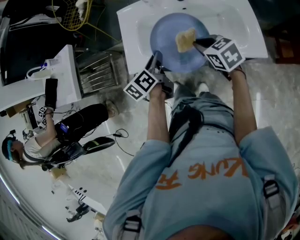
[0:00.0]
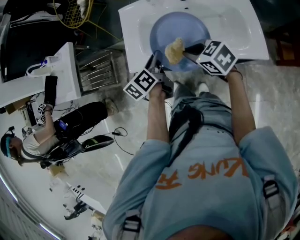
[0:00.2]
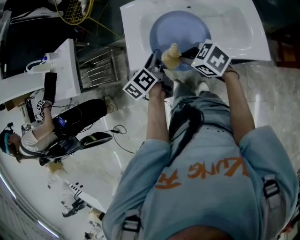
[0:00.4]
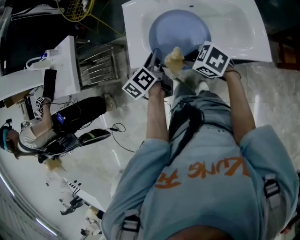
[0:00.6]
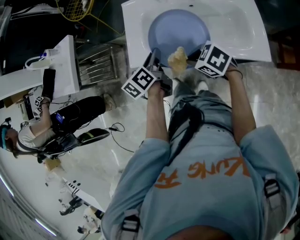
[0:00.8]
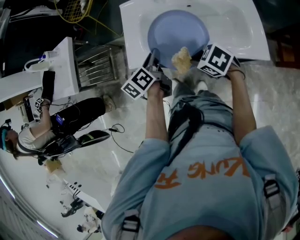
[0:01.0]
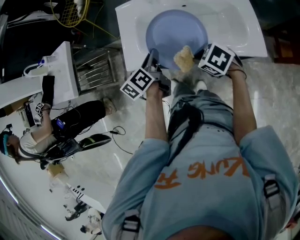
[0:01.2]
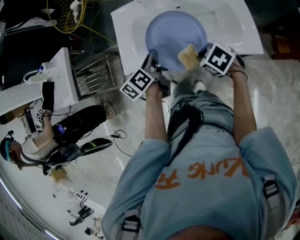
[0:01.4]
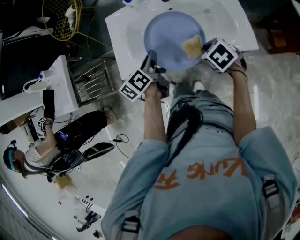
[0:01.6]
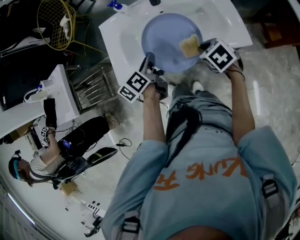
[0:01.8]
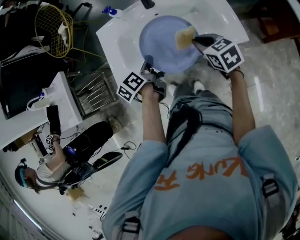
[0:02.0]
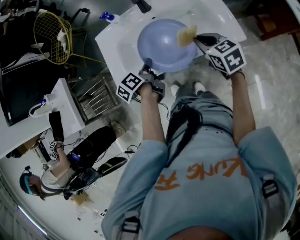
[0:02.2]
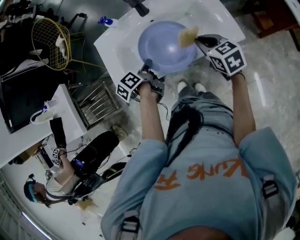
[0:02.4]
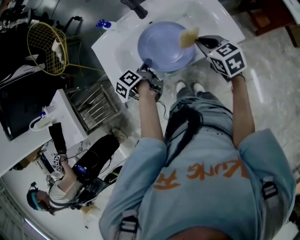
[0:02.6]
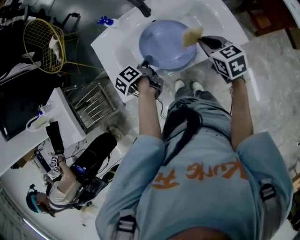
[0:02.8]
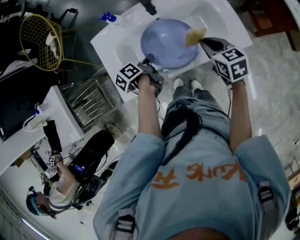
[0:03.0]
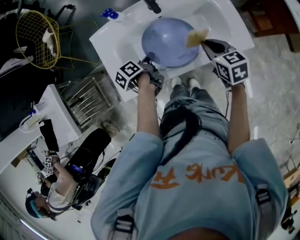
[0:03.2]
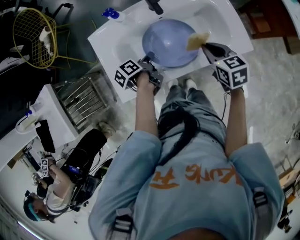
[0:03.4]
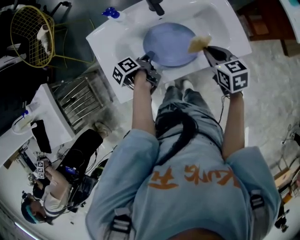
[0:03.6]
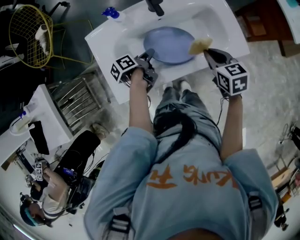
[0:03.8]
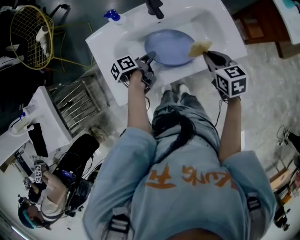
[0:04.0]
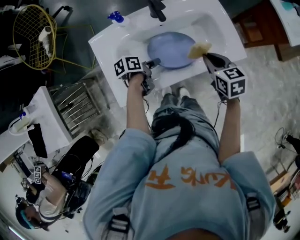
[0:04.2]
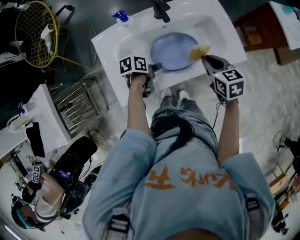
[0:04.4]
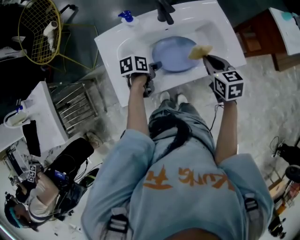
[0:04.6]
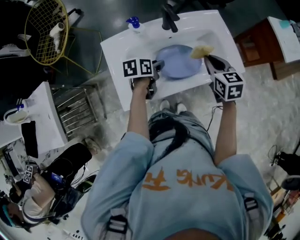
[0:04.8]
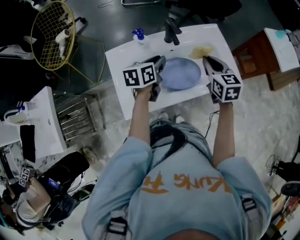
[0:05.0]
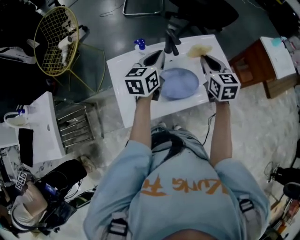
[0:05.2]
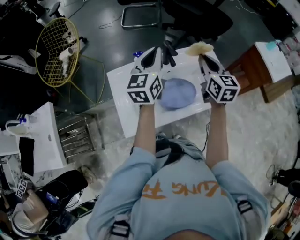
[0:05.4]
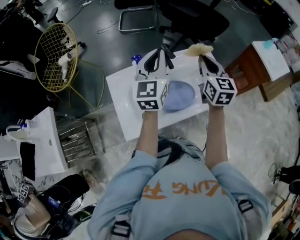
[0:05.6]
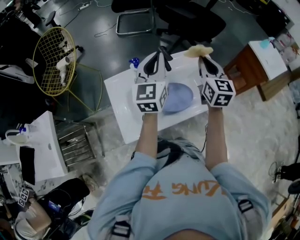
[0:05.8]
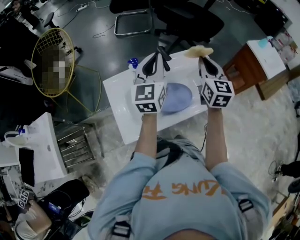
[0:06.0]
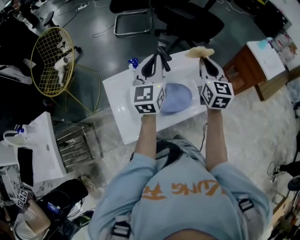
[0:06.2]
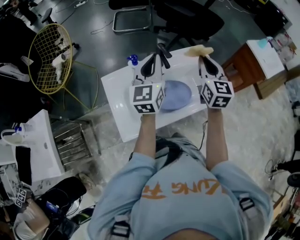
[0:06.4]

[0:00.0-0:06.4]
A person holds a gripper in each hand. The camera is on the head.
0:00.0 to 0:01.6: The right gripper is displaced backward and to the right by about 10 cm, and rotates some 20 degrees.
0:01.6 to 0:03.2: The right gripper goes about 5 cm forward, and swivels approximately 40 degrees. Meanwhile the left gripper is displaced downward and forward by approximately 10 cm, and rotates approximately 30 degrees.
0:03.2 to 0:04.8: Both grippers move upward, approximately 5 cm. The left gripper rotates about 40 degrees.
0:04.8 to 0:06.4: The right gripper travels upward and forward by approximately 15 cm, and turns by approximately 30 degrees, while the left gripper is displaced upward by some 25 cm, tips its fingers upward by some 50 degrees, and closes up.

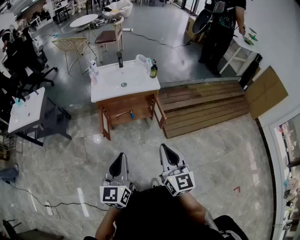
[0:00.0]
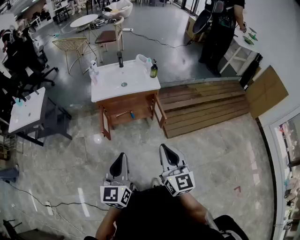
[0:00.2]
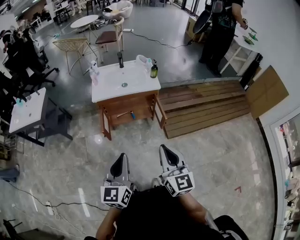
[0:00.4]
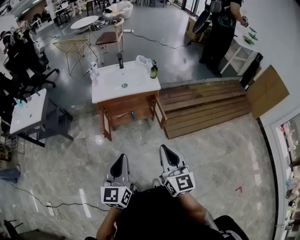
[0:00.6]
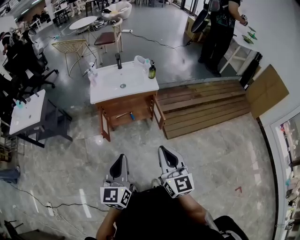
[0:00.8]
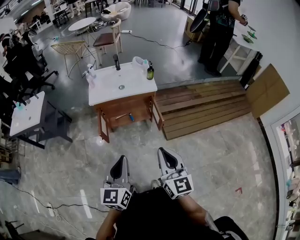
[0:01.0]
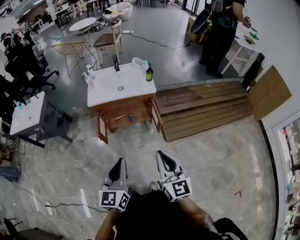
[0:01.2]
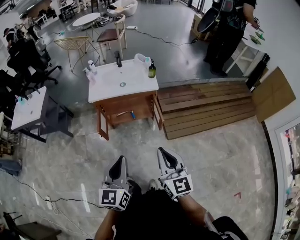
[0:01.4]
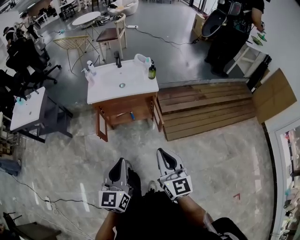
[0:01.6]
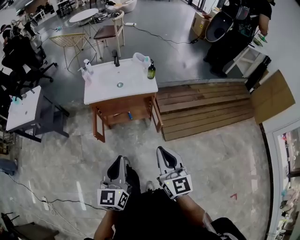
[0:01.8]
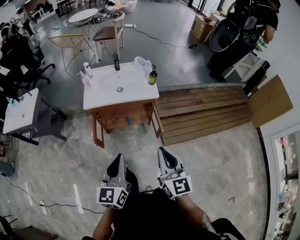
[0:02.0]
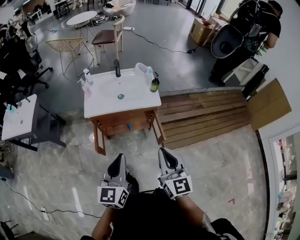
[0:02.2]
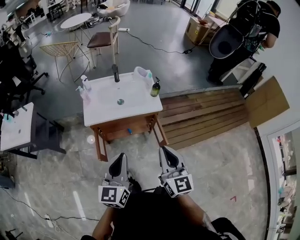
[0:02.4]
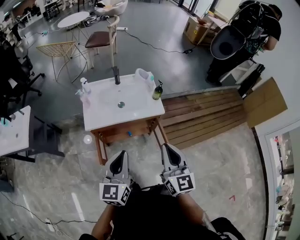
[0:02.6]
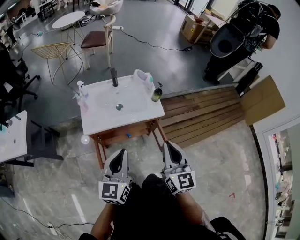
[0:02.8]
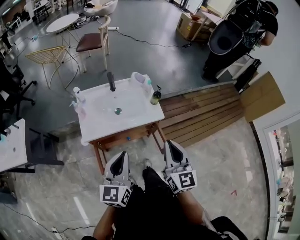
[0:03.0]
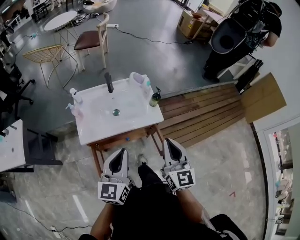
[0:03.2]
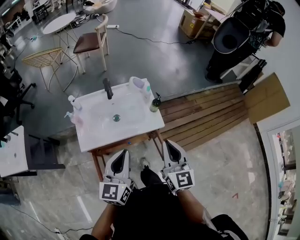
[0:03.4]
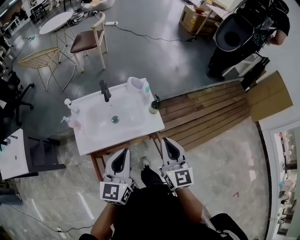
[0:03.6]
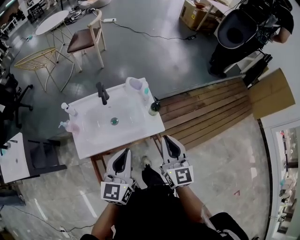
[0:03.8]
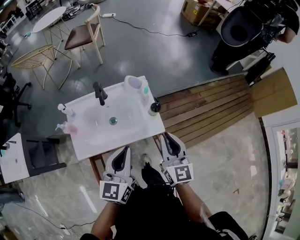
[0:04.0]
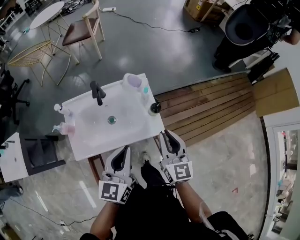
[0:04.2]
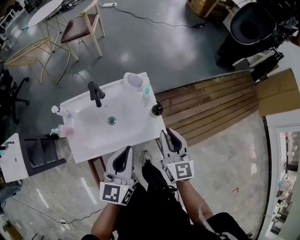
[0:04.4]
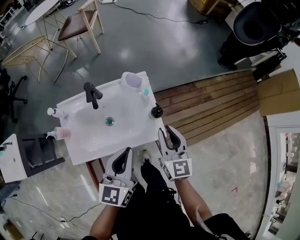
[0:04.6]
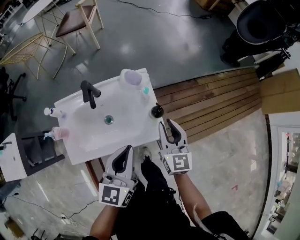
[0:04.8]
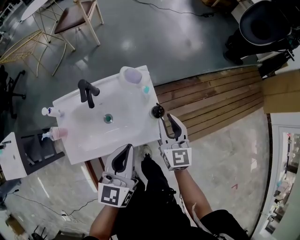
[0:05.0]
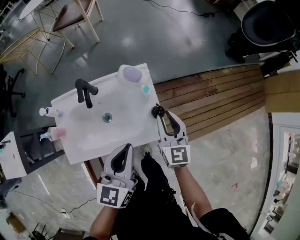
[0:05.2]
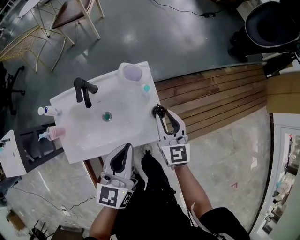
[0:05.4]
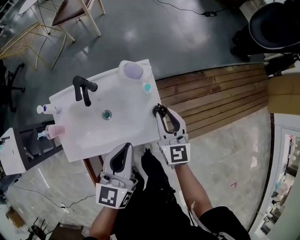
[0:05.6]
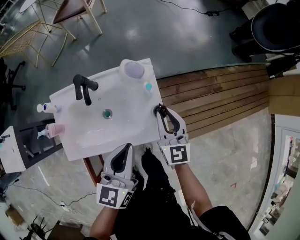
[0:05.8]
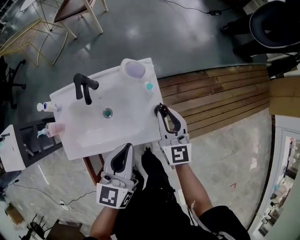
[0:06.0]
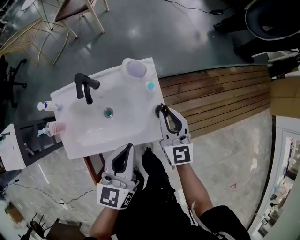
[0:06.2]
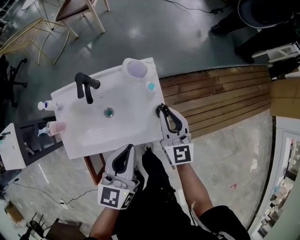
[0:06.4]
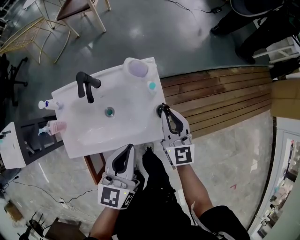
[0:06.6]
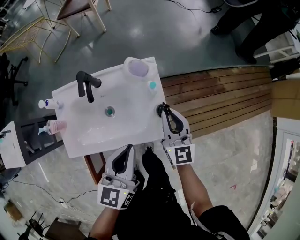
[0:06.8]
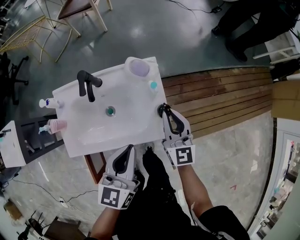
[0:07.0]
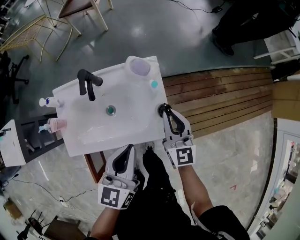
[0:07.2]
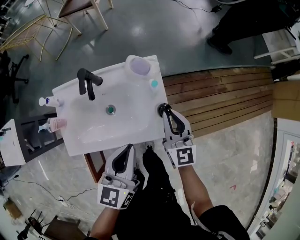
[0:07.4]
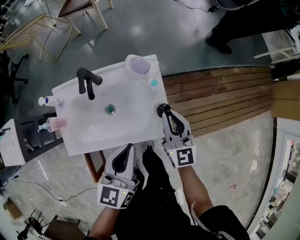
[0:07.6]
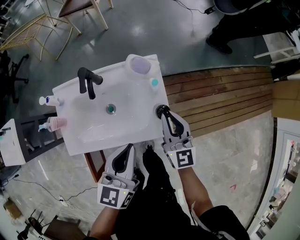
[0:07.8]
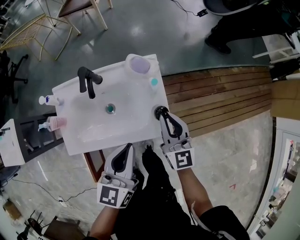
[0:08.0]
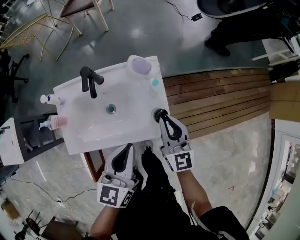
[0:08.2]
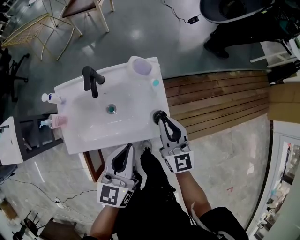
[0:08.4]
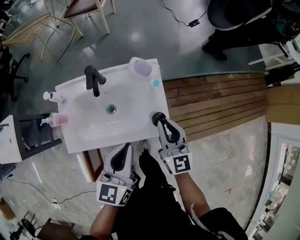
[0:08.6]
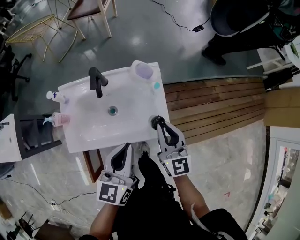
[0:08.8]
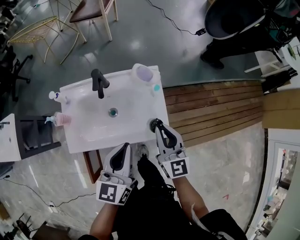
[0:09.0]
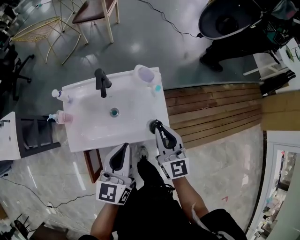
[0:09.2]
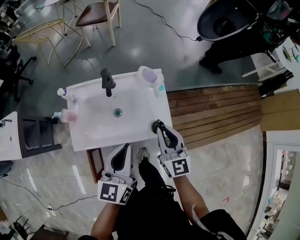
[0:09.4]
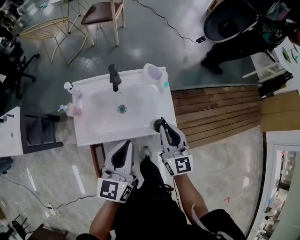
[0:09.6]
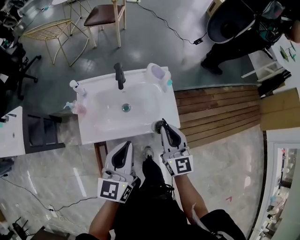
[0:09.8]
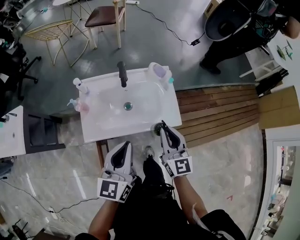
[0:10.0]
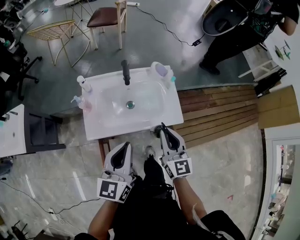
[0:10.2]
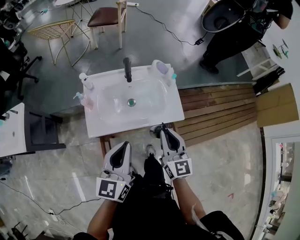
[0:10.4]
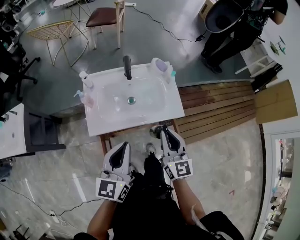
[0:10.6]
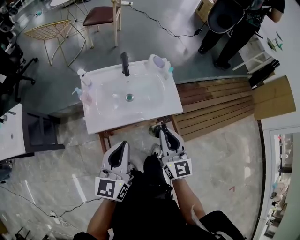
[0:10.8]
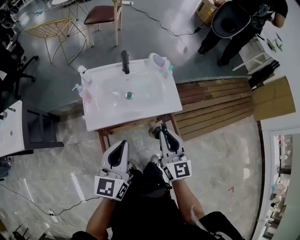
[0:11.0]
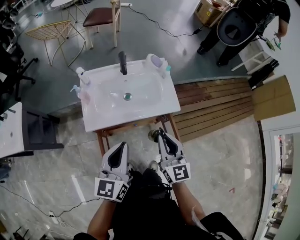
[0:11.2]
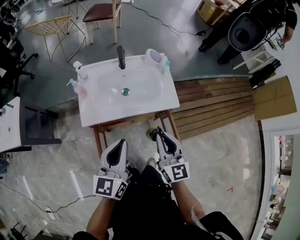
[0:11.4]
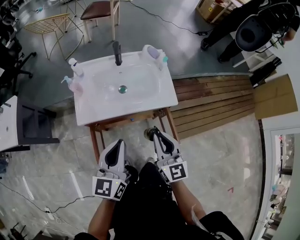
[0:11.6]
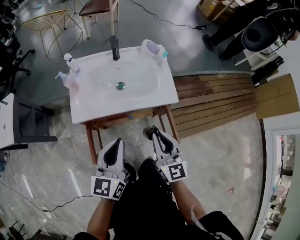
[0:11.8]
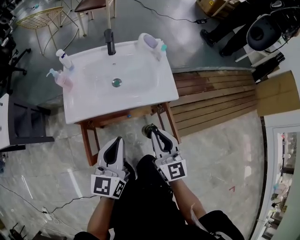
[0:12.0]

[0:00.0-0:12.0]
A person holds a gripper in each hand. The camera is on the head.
0:00.0 to 0:01.6: The two grippers go roughly 5 cm to the right.
0:01.6 to 0:03.0: The two grippers go about 30 cm forward.
0:03.0 to 0:04.4: The left gripper shifts about 25 cm forward. Meanwhile the right gripper travels forward and downward by approximately 25 cm.
0:04.4 to 0:06.0: The left gripper goes roughly 10 cm forward and downward. Meanwhile the right gripper heads forward and downward, covering approximately 15 cm.
0:06.0 to 0:07.6: The grippers make only small movements.
0:07.6 to 0:09.0: The right gripper heads backward and upward, covering some 10 cm, while the left gripper moves about 5 cm.
0:09.0 to 0:10.4: The left gripper heads to the left and backward, covering some 20 cm; the right gripper goes about 20 cm backward and to the left.
0:10.4 to 0:12.0: The left gripper heads downward, backward and to the right, covering about 15 cm; the right gripper shifts about 15 cm downward and backward.

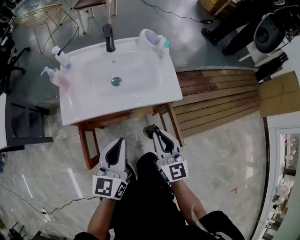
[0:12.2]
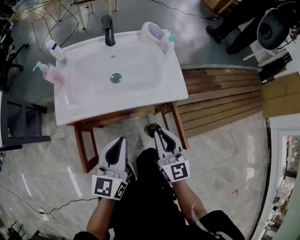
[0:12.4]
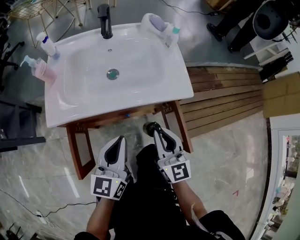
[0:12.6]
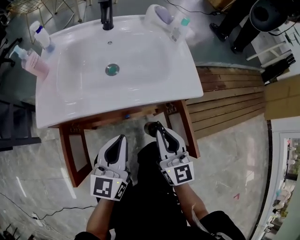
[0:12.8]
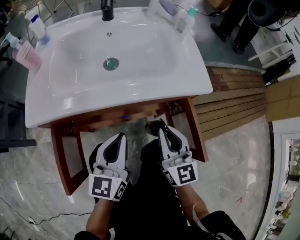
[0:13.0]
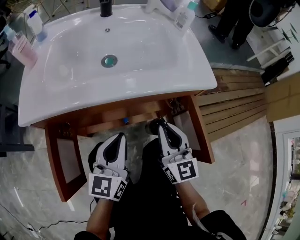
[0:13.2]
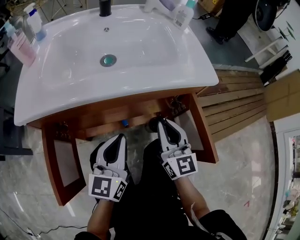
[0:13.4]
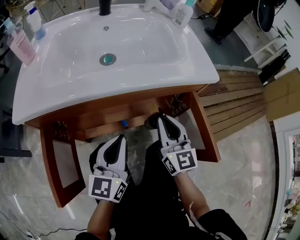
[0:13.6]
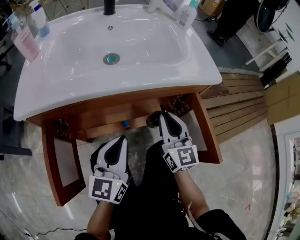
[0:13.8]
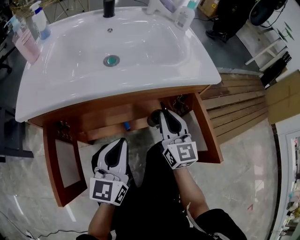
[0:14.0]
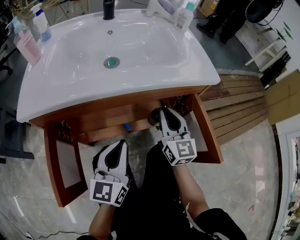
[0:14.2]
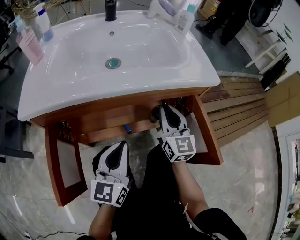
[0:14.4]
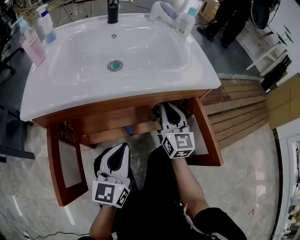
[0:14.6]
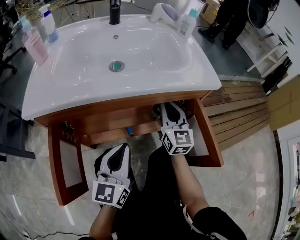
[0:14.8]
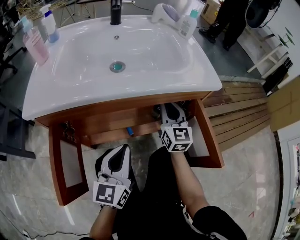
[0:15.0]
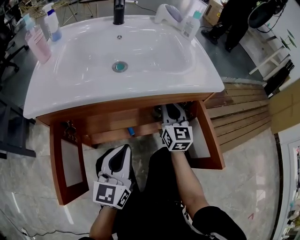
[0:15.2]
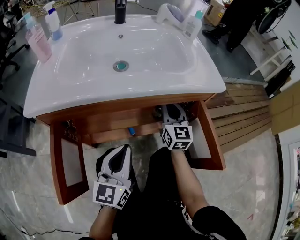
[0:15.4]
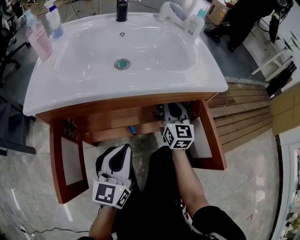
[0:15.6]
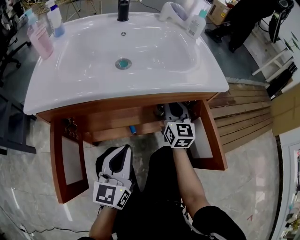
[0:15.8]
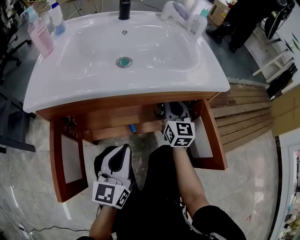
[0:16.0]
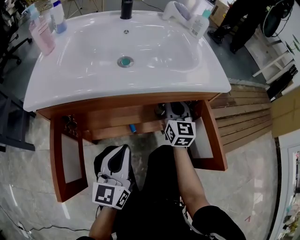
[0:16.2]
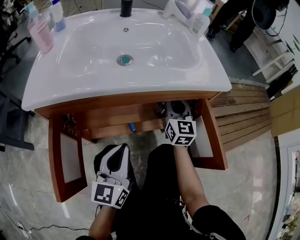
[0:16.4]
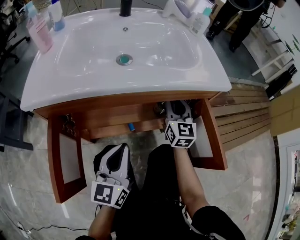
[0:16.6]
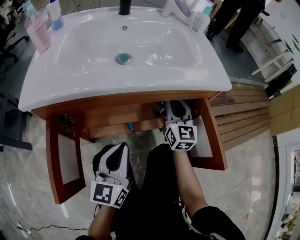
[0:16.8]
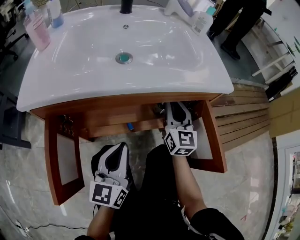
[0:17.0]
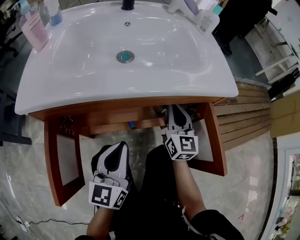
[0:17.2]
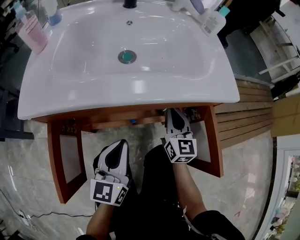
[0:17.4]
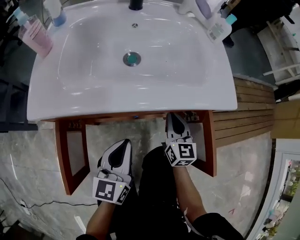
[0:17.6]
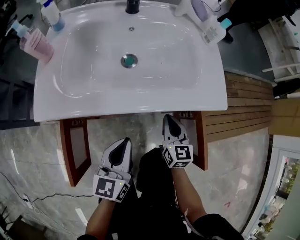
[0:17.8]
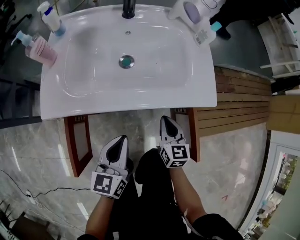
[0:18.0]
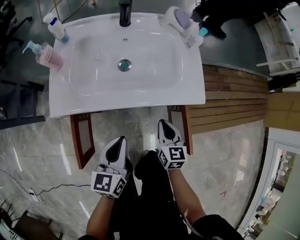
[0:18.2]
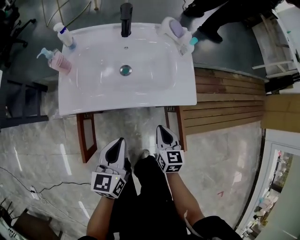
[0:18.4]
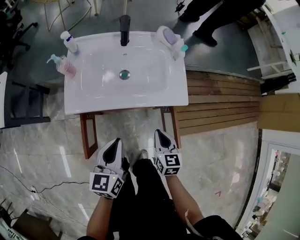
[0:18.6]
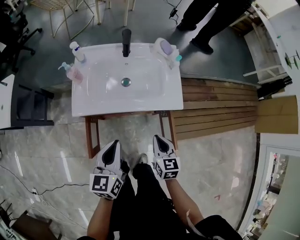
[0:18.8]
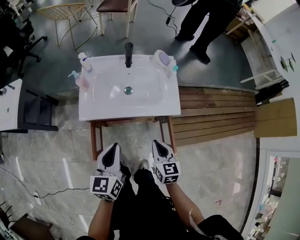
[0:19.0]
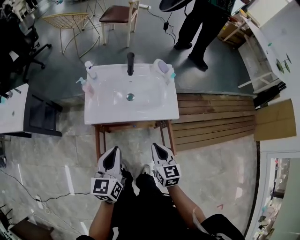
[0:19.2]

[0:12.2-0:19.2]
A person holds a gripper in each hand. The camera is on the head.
0:12.2 to 0:13.6: The grippers both shift downward by some 25 cm.
0:13.6 to 0:15.0: The right gripper is displaced forward by some 10 cm.
0:15.0 to 0:16.4: The grippers stay close to where they were, moving slightly.
0:16.4 to 0:17.8: The right gripper heads backward, covering roughly 10 cm, and swivels some 20 degrees, while the left gripper shifts about 10 cm upward.
0:17.8 to 0:19.2: The two grippers go roughly 35 cm upward.
